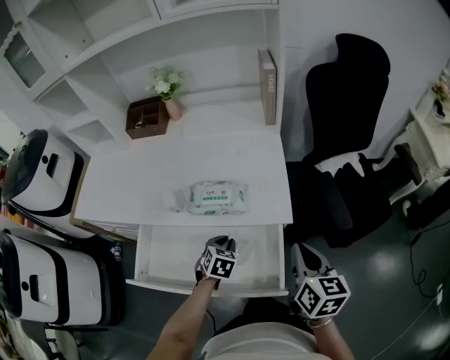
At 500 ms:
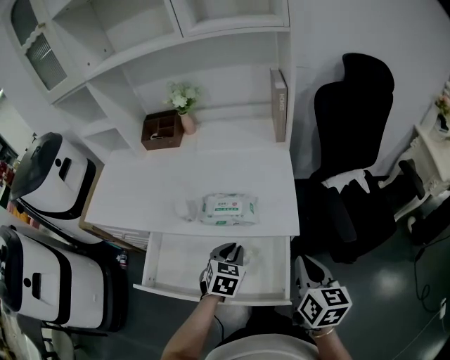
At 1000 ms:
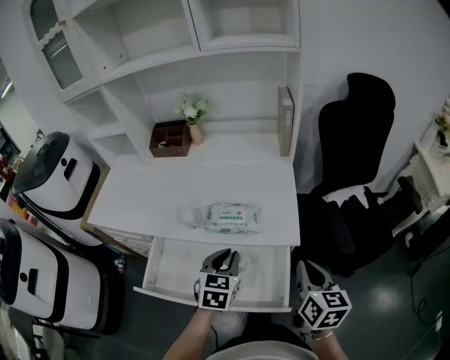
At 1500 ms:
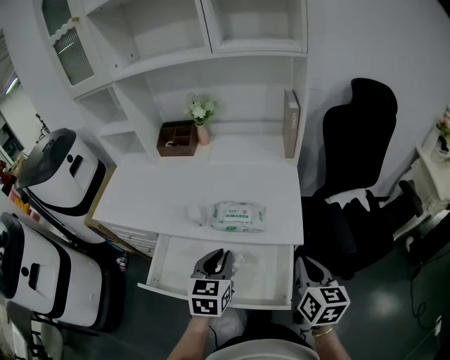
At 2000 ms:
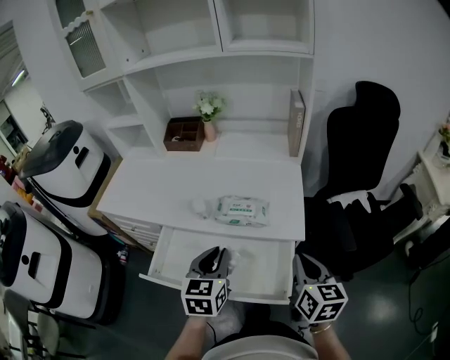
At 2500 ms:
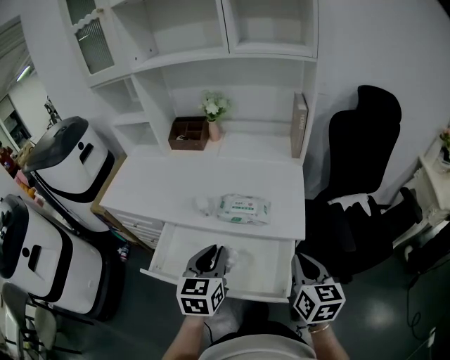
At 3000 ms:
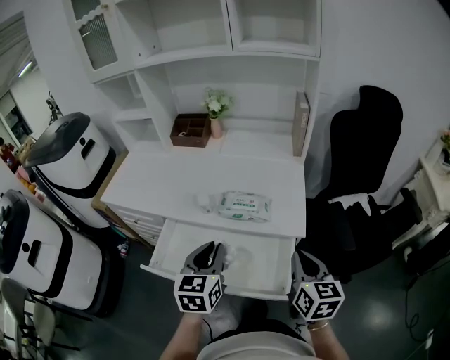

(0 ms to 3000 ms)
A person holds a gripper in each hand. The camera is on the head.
0 ms - 1500 ms: The left gripper moves upward, roughly 20 cm, and turns by about 30 degrees.
1500 ms - 3000 ms: The left gripper moves about 5 cm.

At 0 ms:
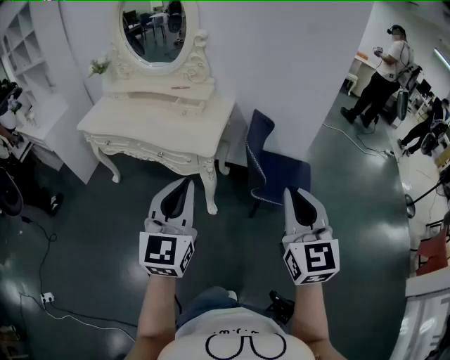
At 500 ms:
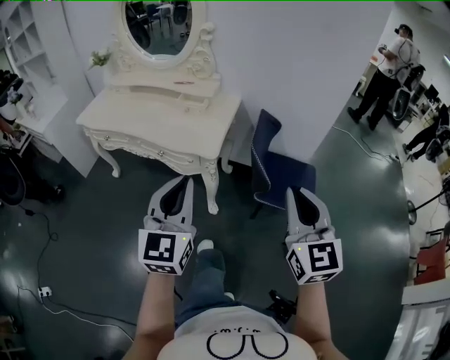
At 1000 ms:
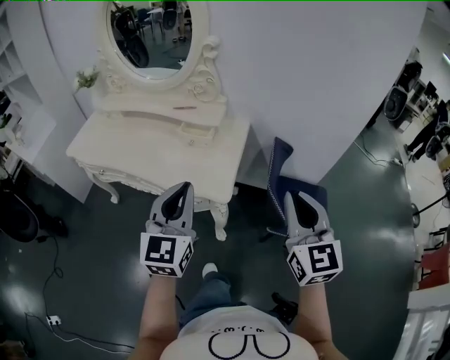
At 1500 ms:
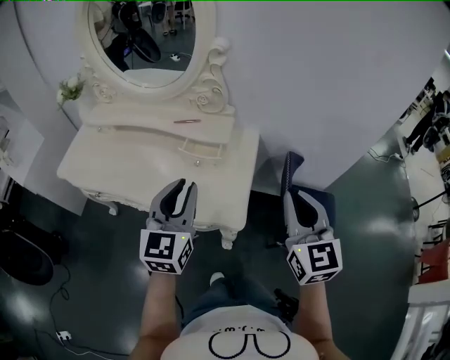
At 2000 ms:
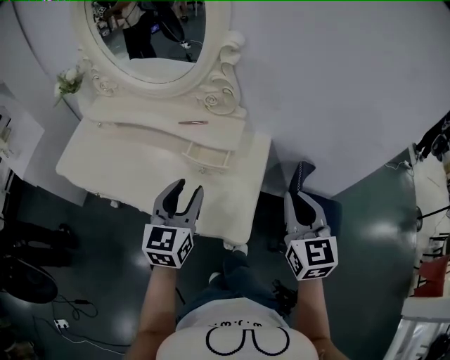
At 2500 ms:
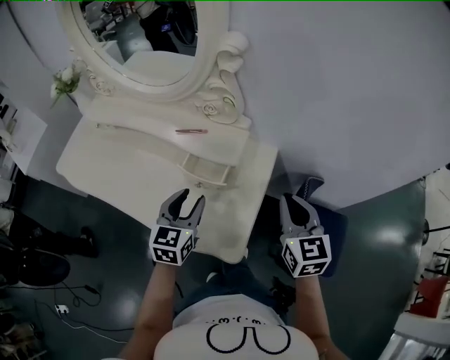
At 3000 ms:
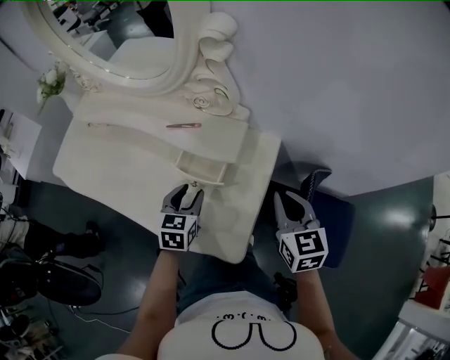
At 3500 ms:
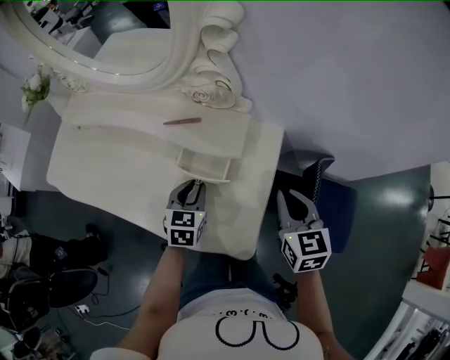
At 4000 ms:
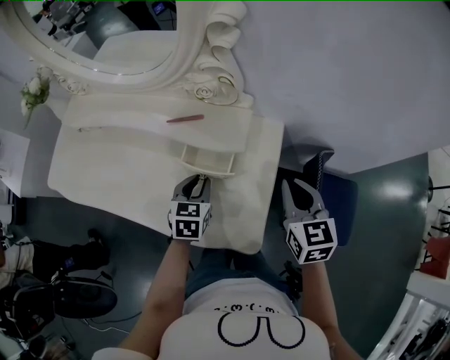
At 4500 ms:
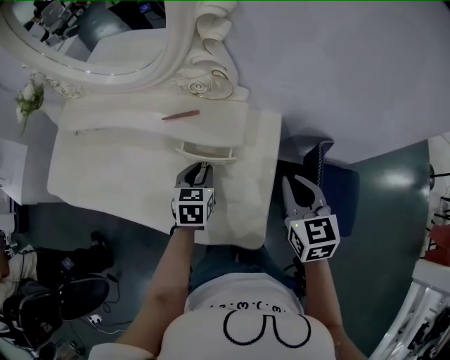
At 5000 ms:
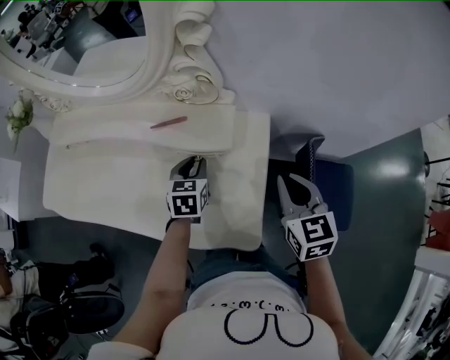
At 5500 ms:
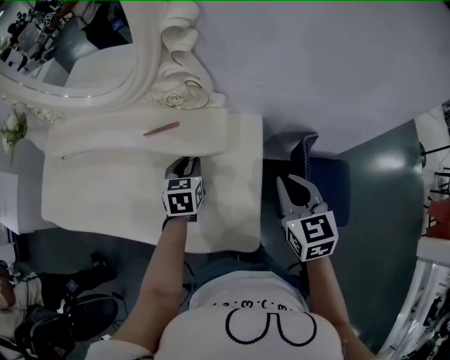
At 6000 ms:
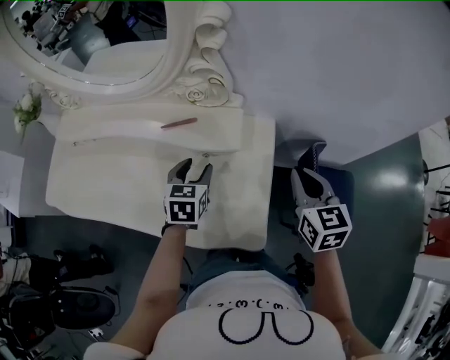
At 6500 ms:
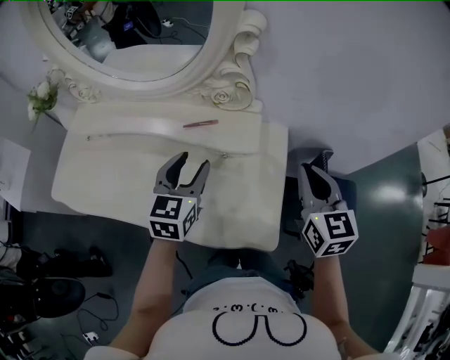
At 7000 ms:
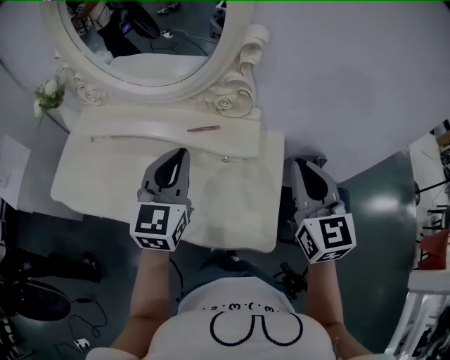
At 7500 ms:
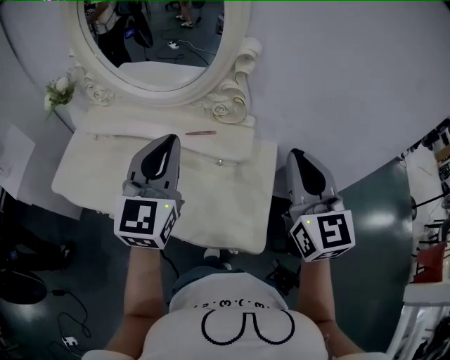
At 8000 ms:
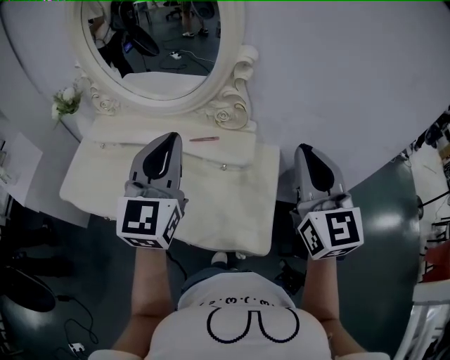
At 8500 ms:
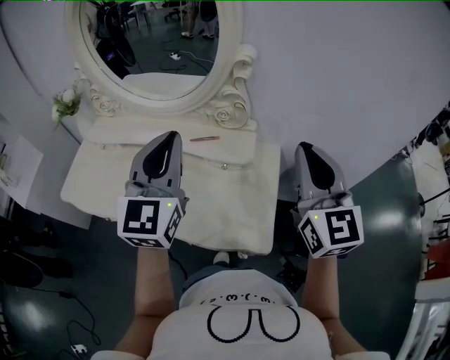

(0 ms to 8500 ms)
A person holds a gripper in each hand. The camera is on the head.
0 ms - 2000 ms: Both grippers are carried forward, approximately 50 cm. The left gripper opens its fingers.
2000 ms - 4000 ms: The right gripper shifts some 15 cm forward and downward. The left gripper travels downward and forward by roughly 25 cm, angles its fingers downward, by approximately 30 degrees, and closes up.
4000 ms - 6500 ms: The right gripper heads upward, covering some 10 cm. Meanwhile the left gripper goes approximately 15 cm upward and to the left, turns by about 20 degrees, and opens its fingers.
6500 ms - 8500 ms: The two grippers go about 20 cm upward. The left gripper rotates roughly 30 degrees, and closes its fingers. Meanwhile the right gripper turns by roughly 20 degrees.

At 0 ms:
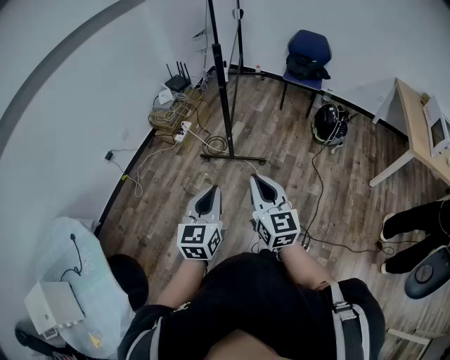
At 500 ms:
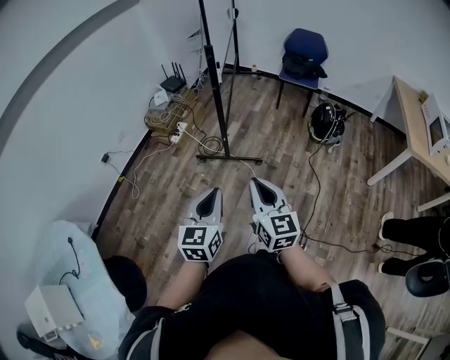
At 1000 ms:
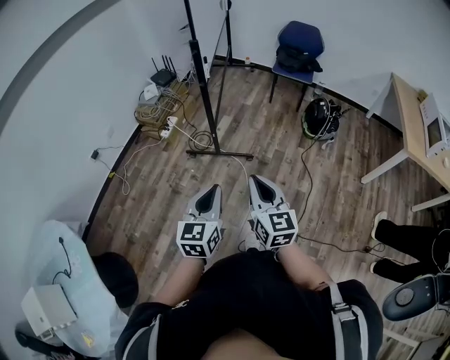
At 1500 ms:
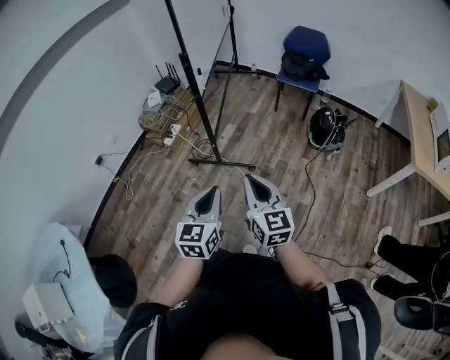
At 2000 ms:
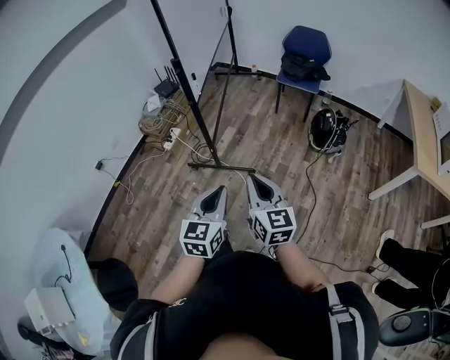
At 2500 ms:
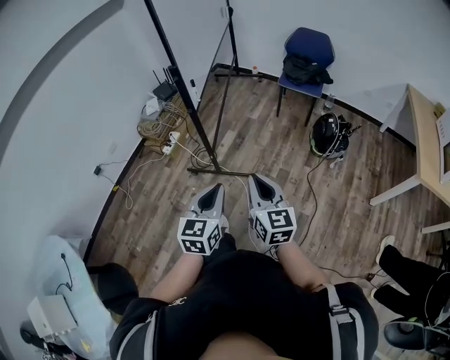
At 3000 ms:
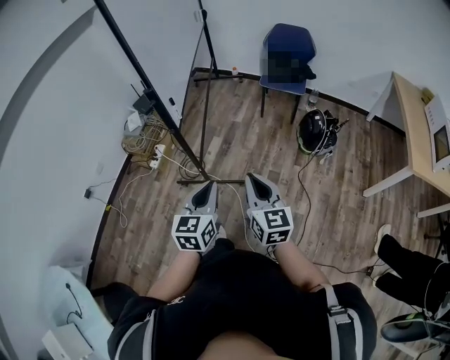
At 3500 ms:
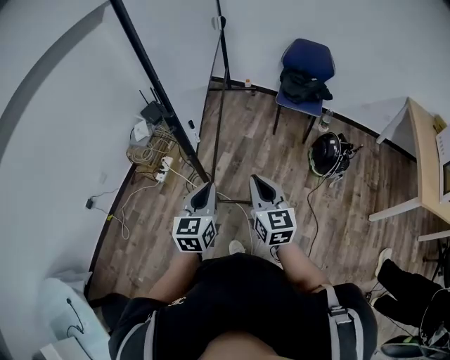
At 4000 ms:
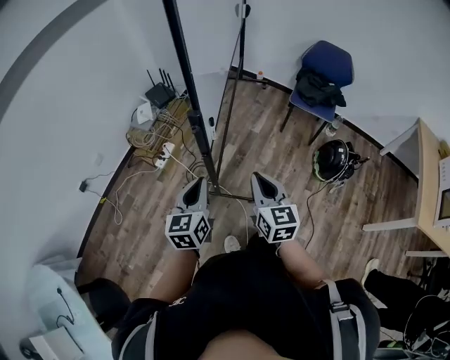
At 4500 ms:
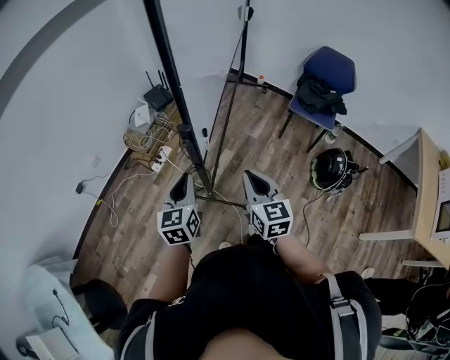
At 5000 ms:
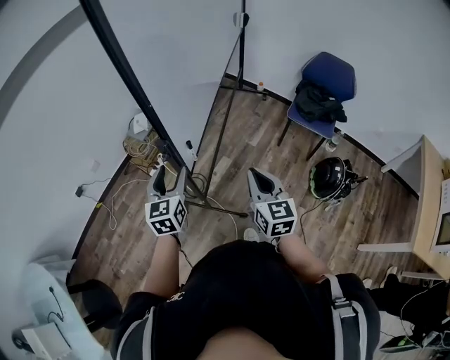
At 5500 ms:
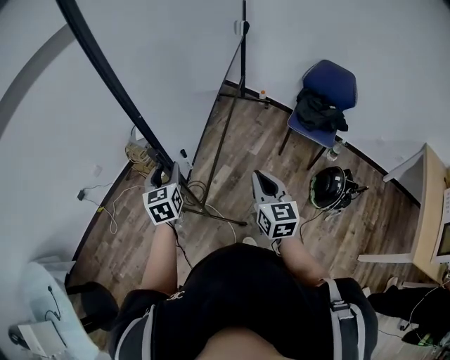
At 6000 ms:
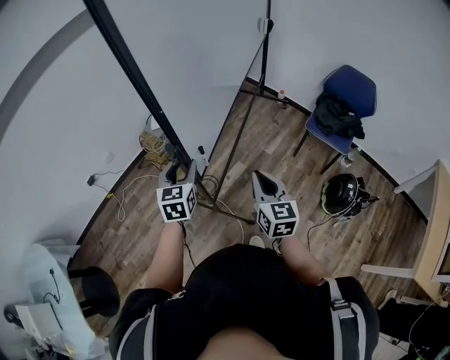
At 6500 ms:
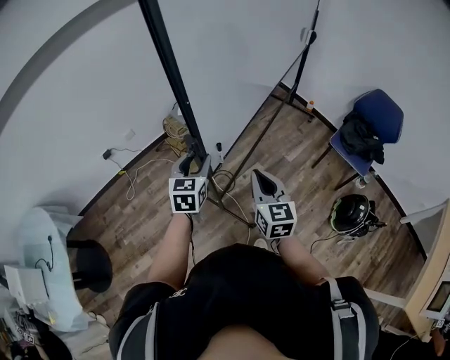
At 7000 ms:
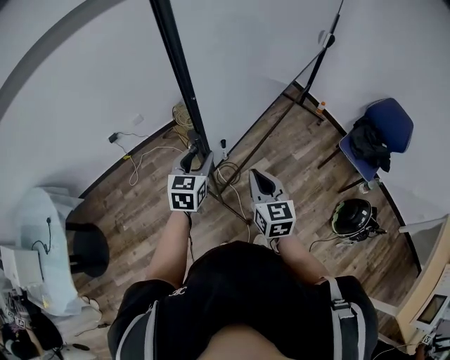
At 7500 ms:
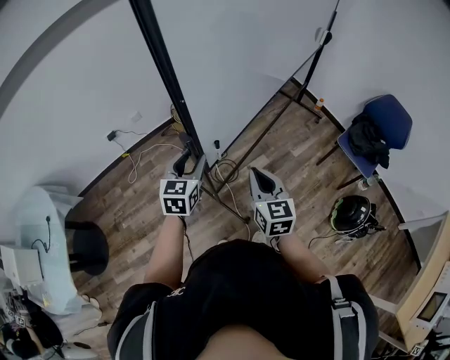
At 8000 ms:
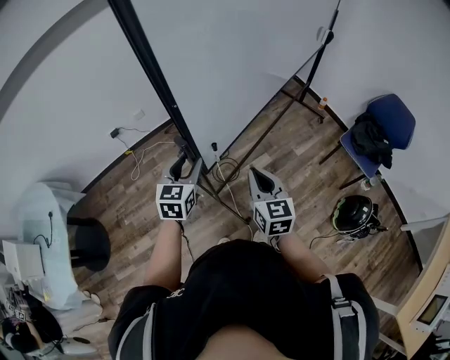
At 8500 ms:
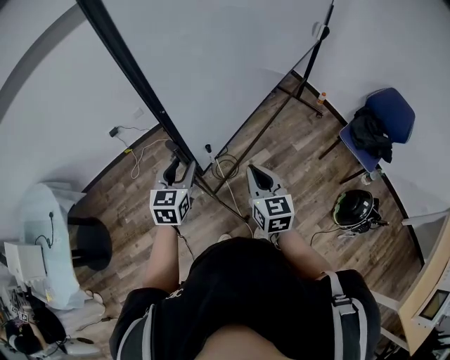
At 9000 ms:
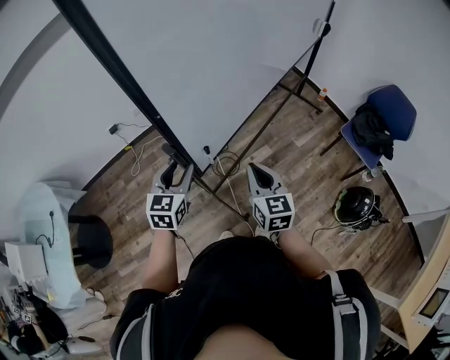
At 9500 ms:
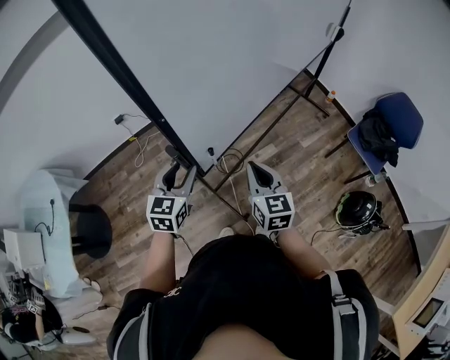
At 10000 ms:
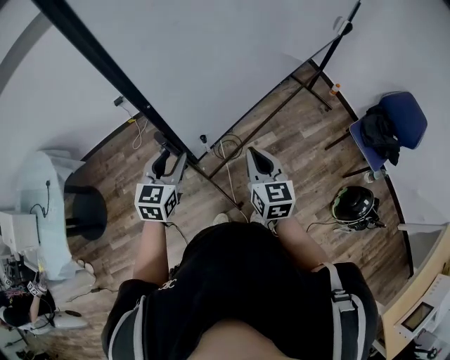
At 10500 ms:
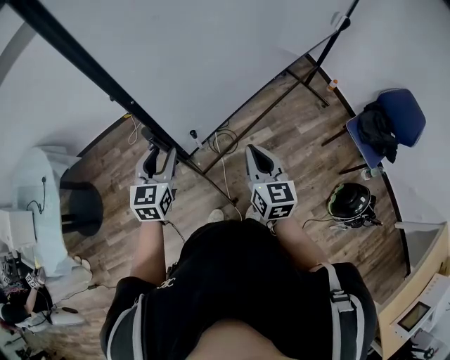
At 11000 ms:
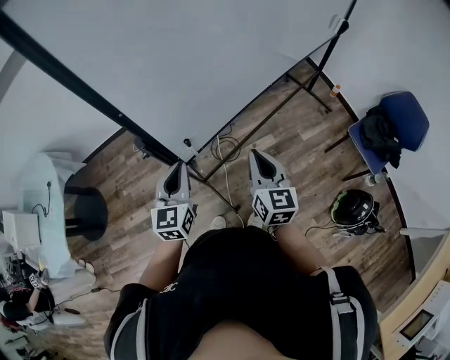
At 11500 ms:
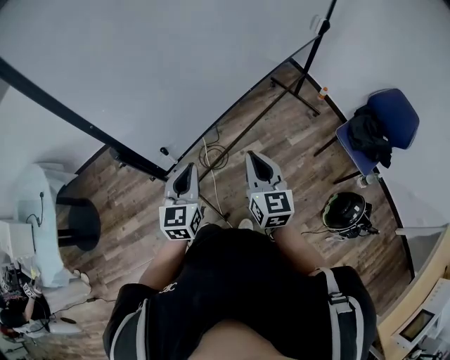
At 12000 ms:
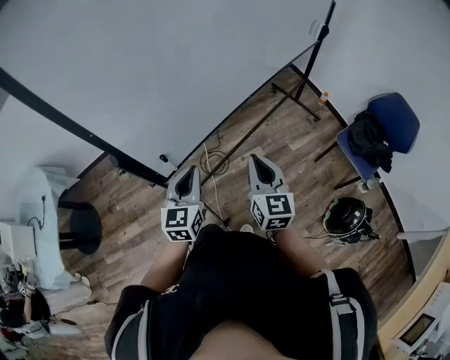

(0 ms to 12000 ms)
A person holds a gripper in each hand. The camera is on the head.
0 ms - 2000 ms: Both grippers move to the right and forward, roughly 20 cm.
2000 ms - 4000 ms: The right gripper shifts some 35 cm forward. Meanwhile the left gripper shifts some 40 cm forward and to the left.
4000 ms - 6000 ms: The left gripper is displaced forward by roughly 15 cm, changes its angle by roughly 20 degrees, and opens. Meanwhile the right gripper is displaced forward and to the right by roughly 15 cm.
6000 ms - 8000 ms: The left gripper travels to the left and backward by about 15 cm. Meanwhile the right gripper heads to the left, covering about 15 cm.
8000 ms - 10000 ms: The left gripper heads backward and to the left, covering approximately 10 cm.
10000 ms - 12000 ms: Both grippers travel together to the right, some 15 cm. The left gripper closes.

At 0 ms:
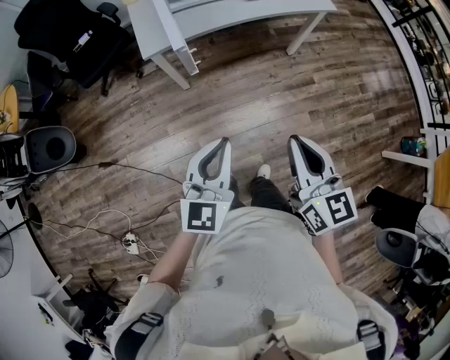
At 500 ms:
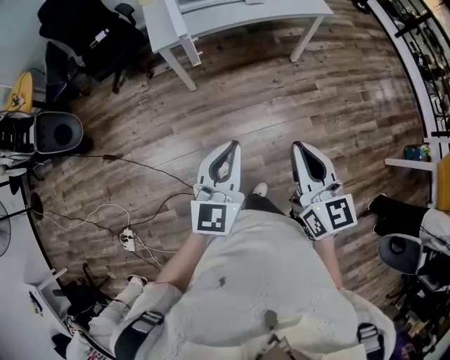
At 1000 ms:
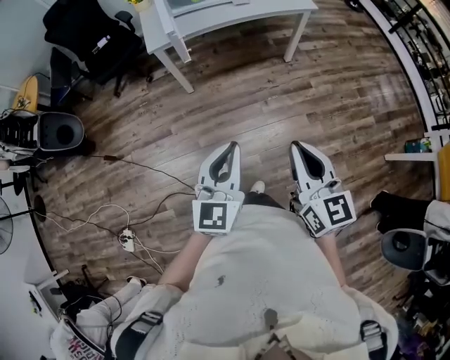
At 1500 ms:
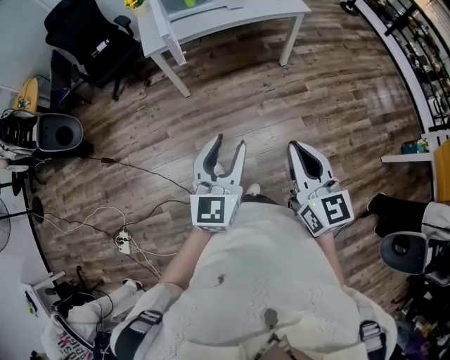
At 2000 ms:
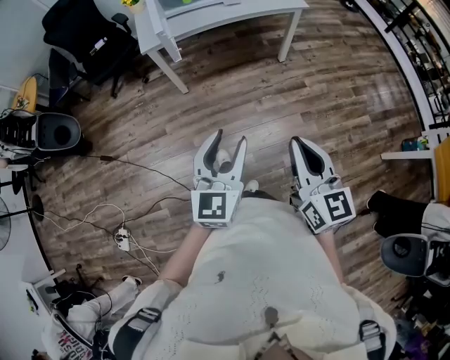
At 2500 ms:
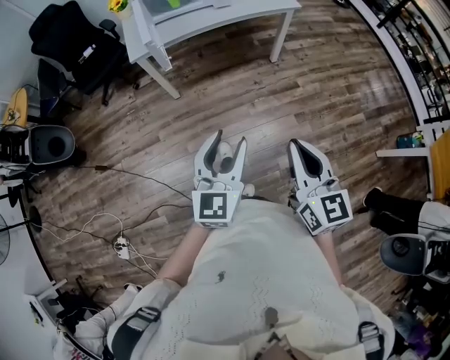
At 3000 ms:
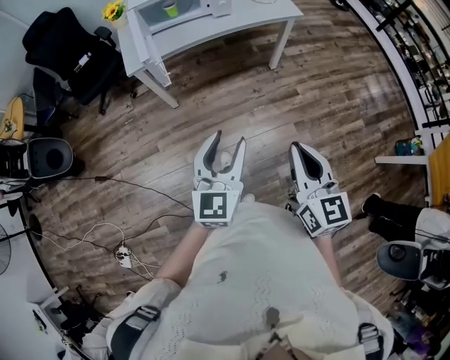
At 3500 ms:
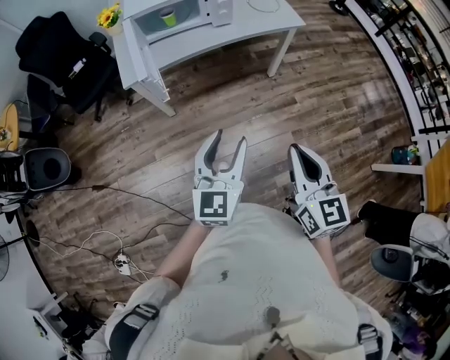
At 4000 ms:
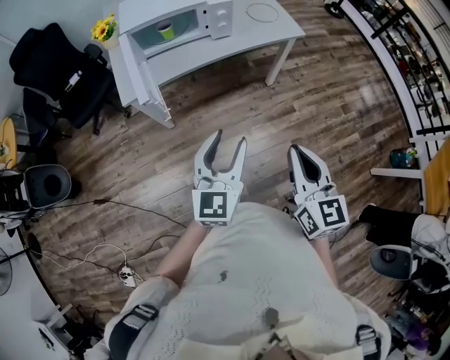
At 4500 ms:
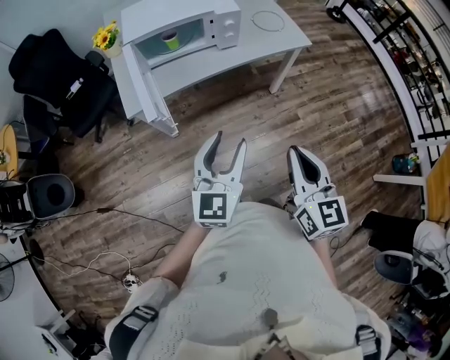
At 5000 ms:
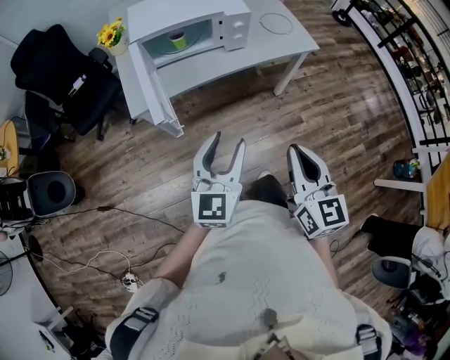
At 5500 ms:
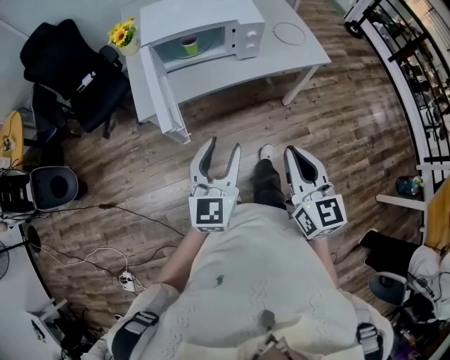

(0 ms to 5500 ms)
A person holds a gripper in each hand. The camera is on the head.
0 ms - 2000 ms: The two grippers go some 30 cm backward and to the right. The left gripper opens.
2000 ms - 3500 ms: The two grippers go about 25 cm forward.
3500 ms - 5500 ms: Both grippers travel together forward and to the left, about 25 cm.
